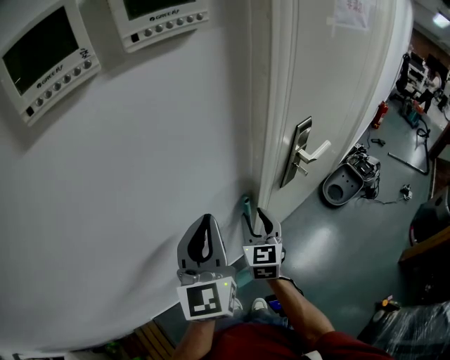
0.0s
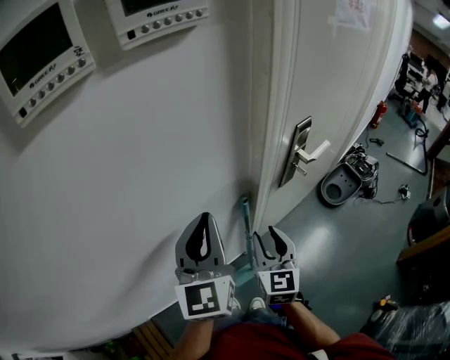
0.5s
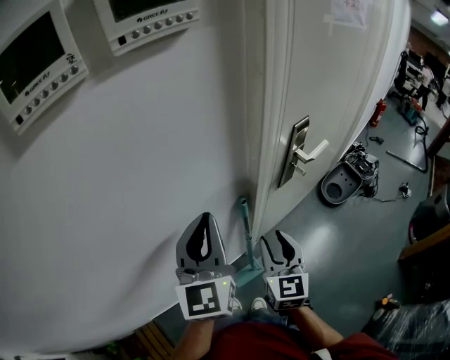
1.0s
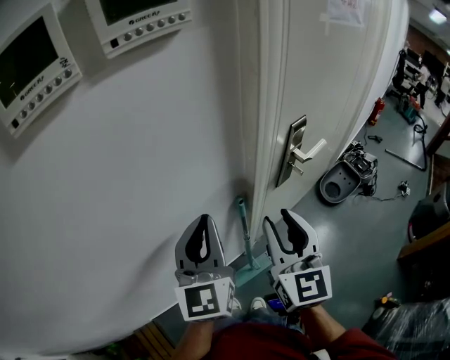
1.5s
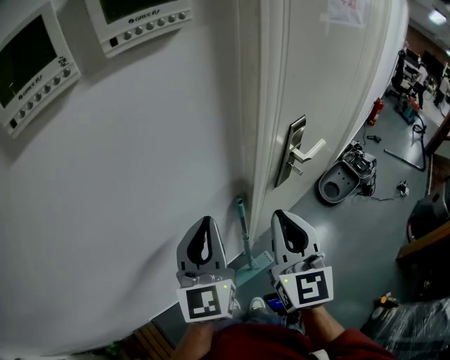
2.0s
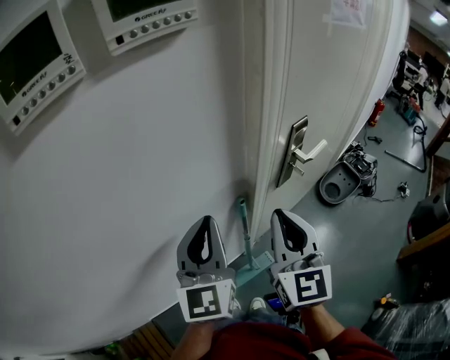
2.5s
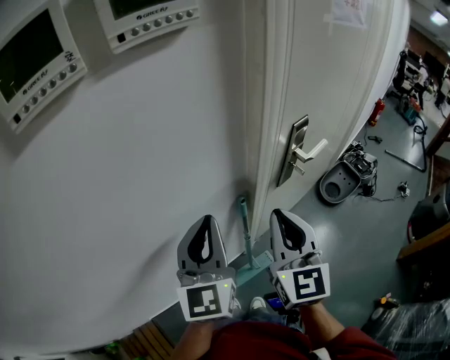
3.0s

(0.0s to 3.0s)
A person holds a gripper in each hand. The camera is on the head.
0.0s - 1.5s: The right gripper goes roughly 15 cm upward and backward.
1.5s - 3.0s: The right gripper closes.

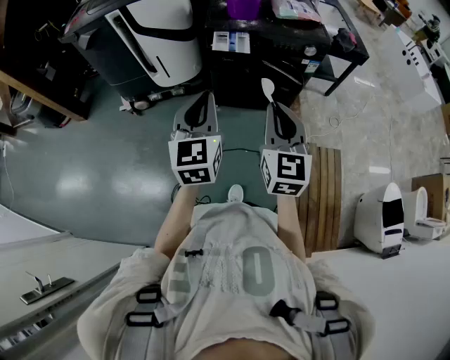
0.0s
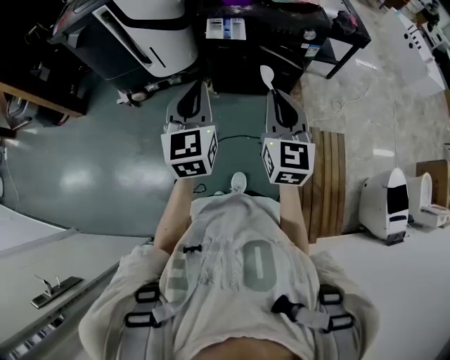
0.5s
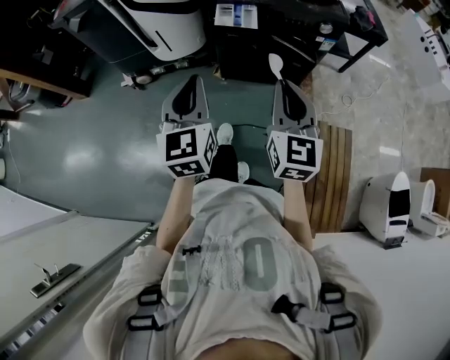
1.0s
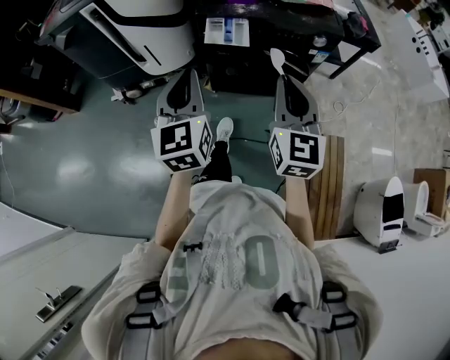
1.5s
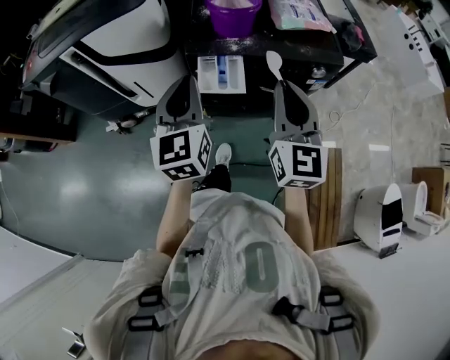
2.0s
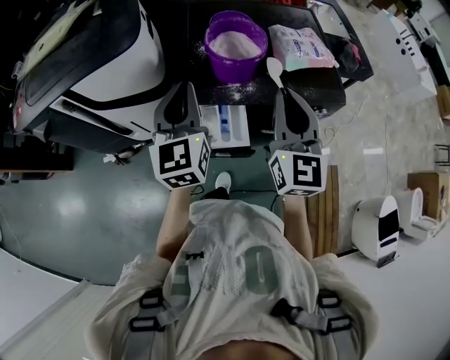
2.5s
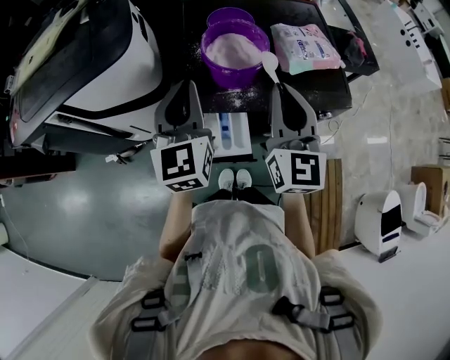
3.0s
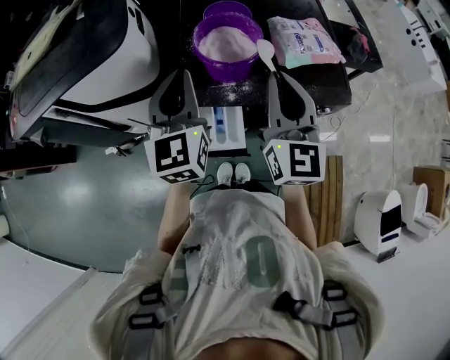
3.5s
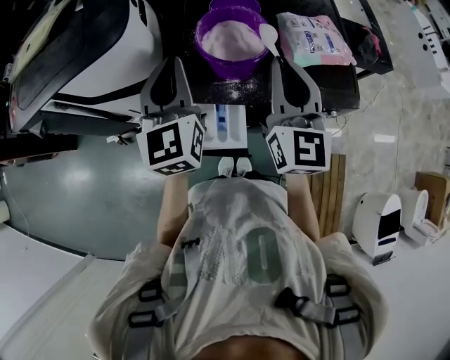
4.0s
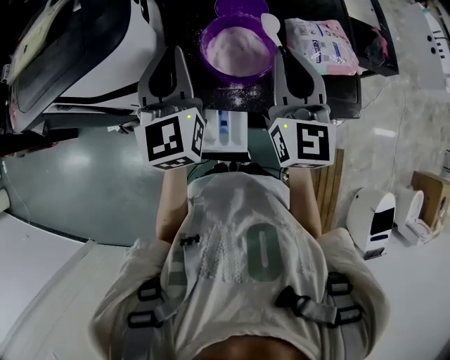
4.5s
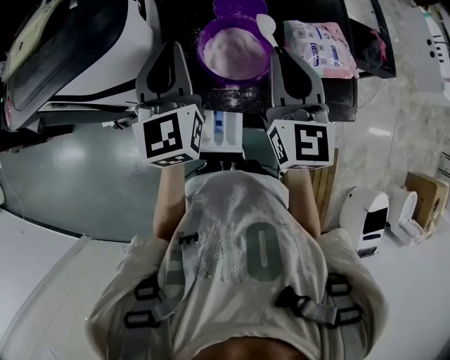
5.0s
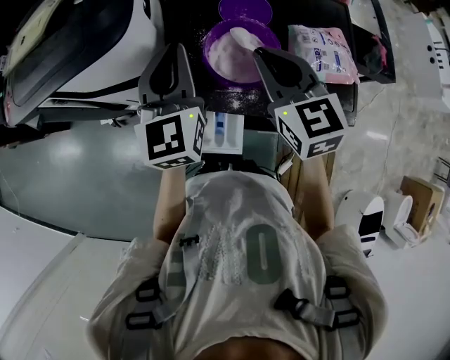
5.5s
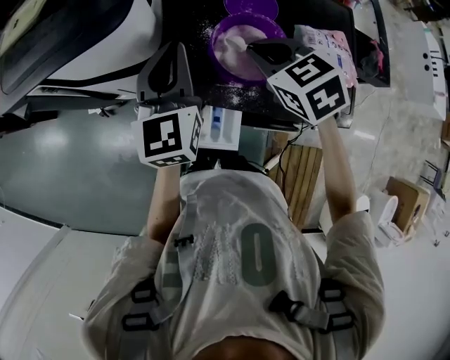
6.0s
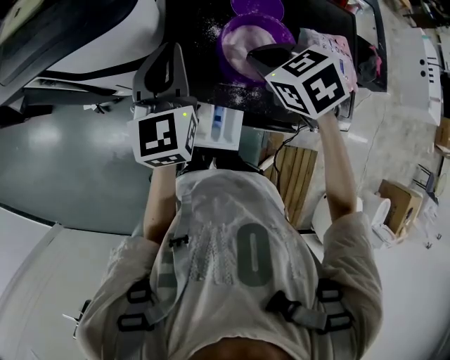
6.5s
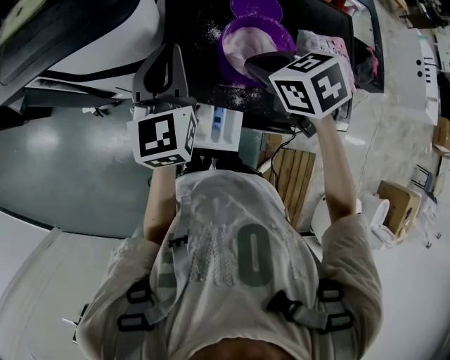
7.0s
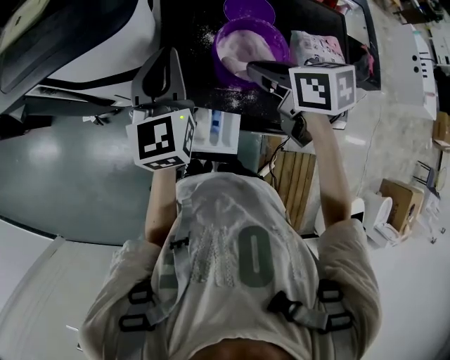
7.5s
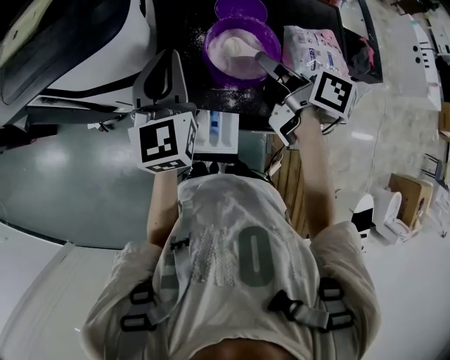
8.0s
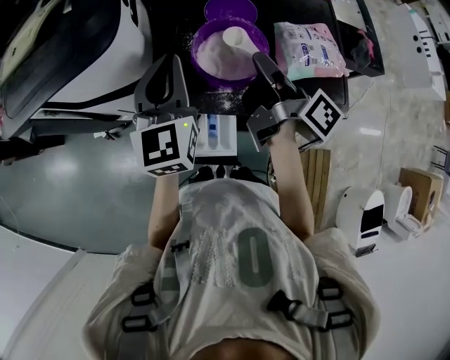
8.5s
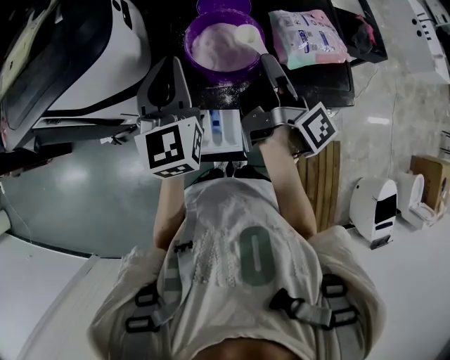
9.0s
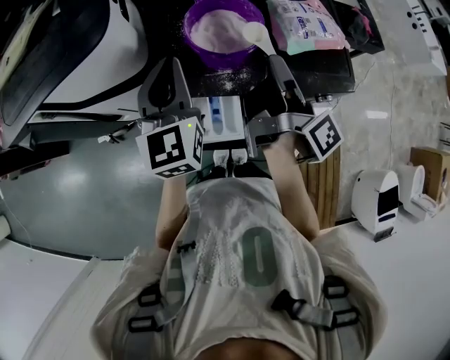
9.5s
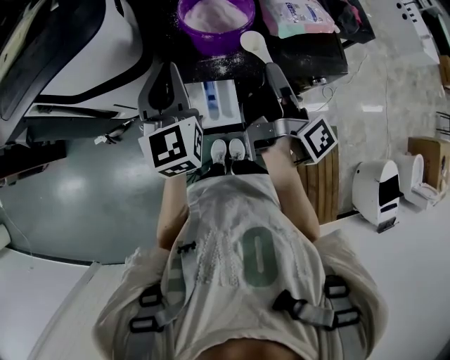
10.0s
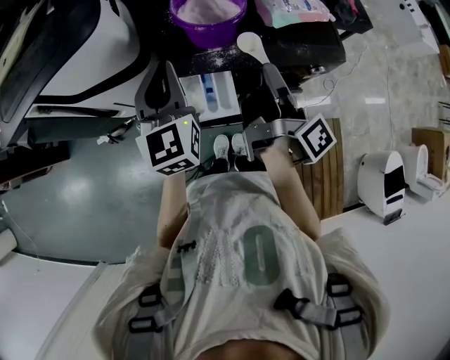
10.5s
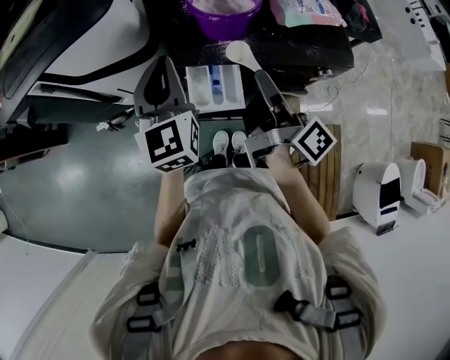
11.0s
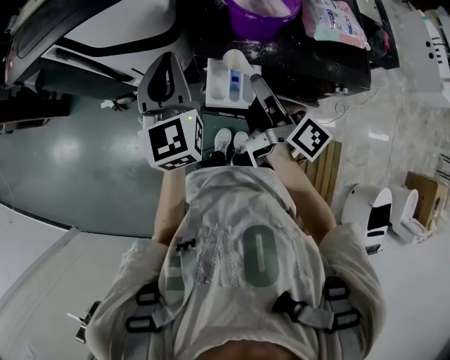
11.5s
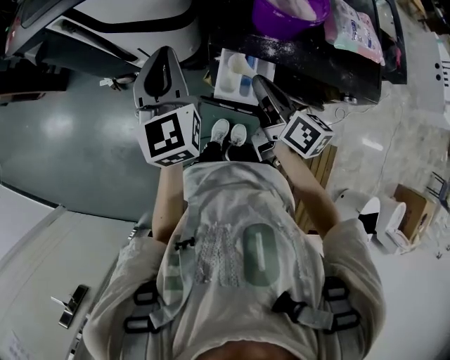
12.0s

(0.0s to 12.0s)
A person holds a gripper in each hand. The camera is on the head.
0.0s - 2.0s: Both grippers travel together forward, about 30 cm.
2.0s - 4.0s: The two grippers go some 25 cm forward.
4.0s - 6.0s: The left gripper moves forward, about 5 cm. Meanwhile the right gripper shifts roughly 15 cm forward, to the left and downward, and tips its fingers downward by about 50 degrees.
6.0s - 8.0s: The right gripper twists approximately 70 degrees clockwise, seen from behind.
8.0s - 10.0s: The left gripper shifts about 10 cm backward and downward; the right gripper moves backward, some 15 cm, and changes its angle by some 60 degrees.
10.0s - 12.0s: The right gripper changes place by about 15 cm, and turns by approximately 60 degrees. The left gripper moves approximately 15 cm.

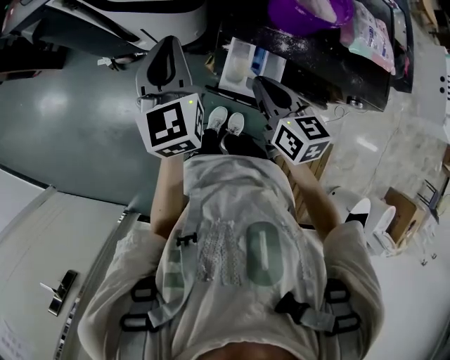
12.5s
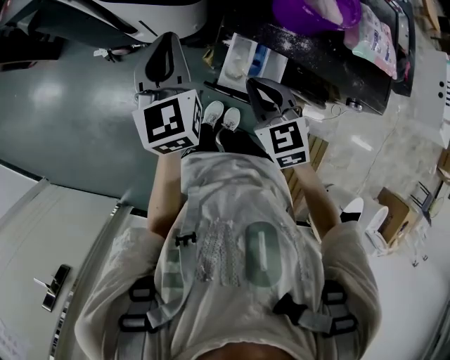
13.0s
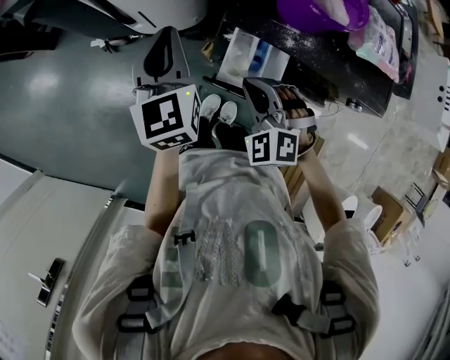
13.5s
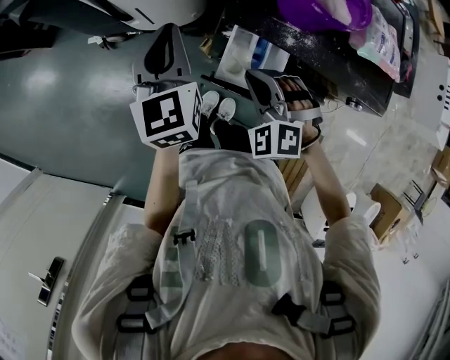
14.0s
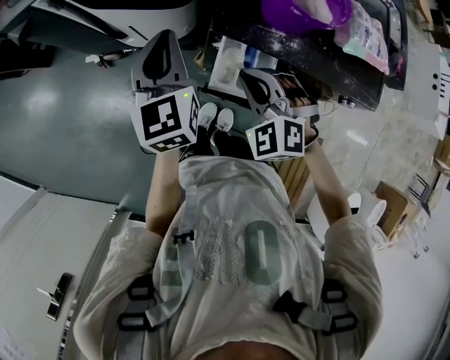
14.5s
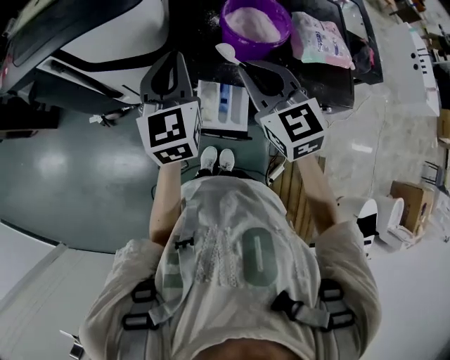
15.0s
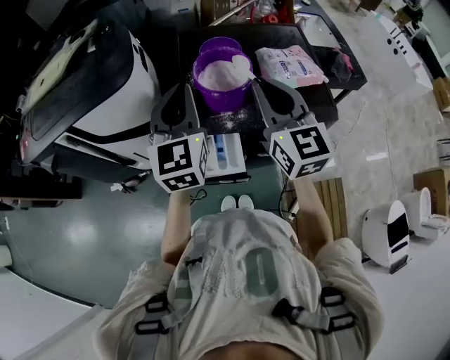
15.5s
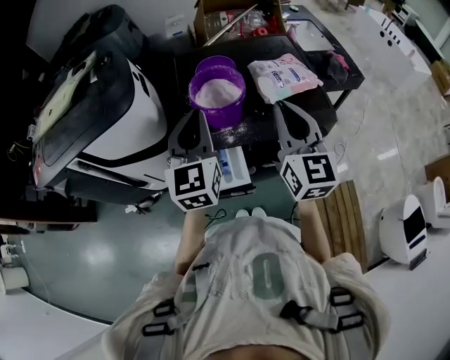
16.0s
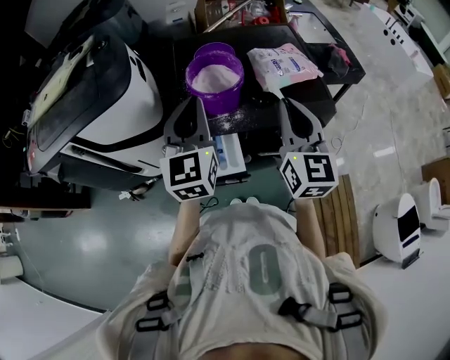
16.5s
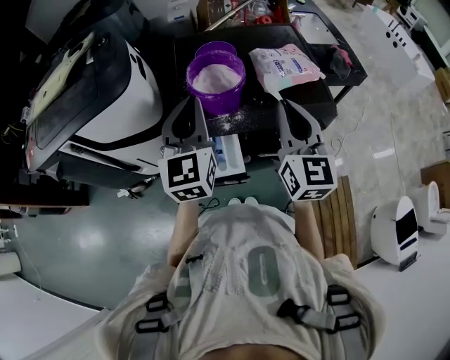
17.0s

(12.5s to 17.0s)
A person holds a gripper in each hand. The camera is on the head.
12.5s - 14.5s: The right gripper twists about 70 degrees counterclockwise, seen from behind.
14.5s - 17.0s: The left gripper moves roughly 25 cm, and turns by roughly 30 degrees. The right gripper shifts roughly 20 cm upward, and points its fingers roughly 40 degrees further upward.

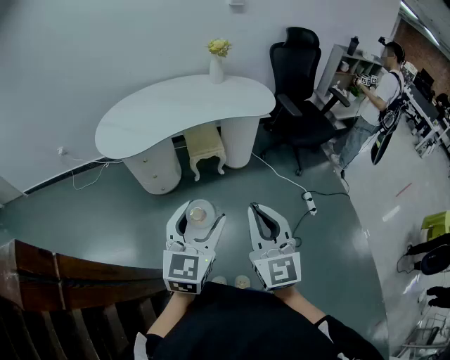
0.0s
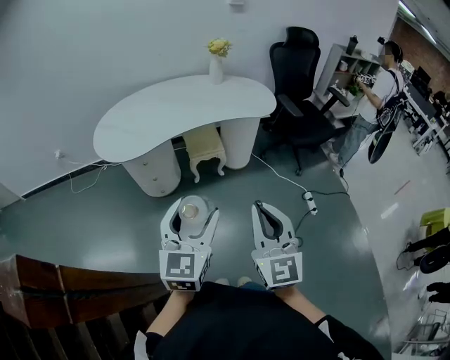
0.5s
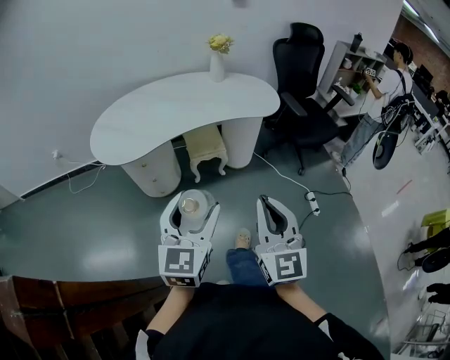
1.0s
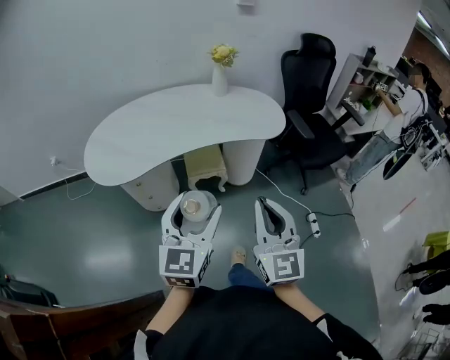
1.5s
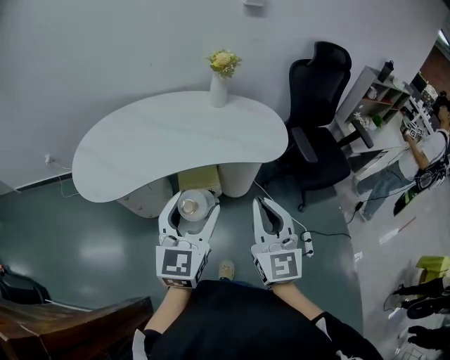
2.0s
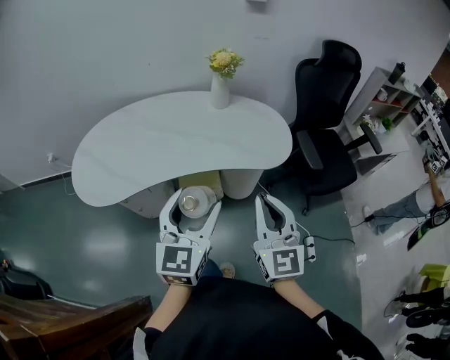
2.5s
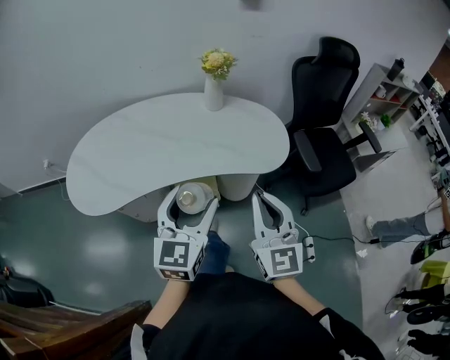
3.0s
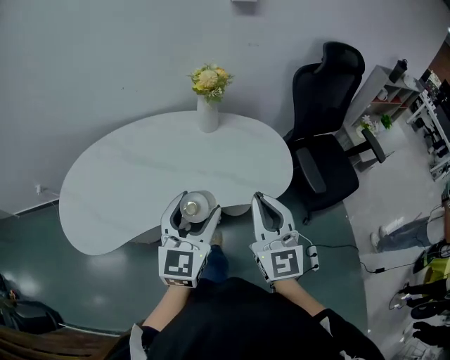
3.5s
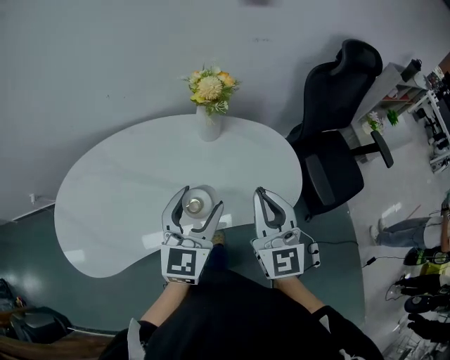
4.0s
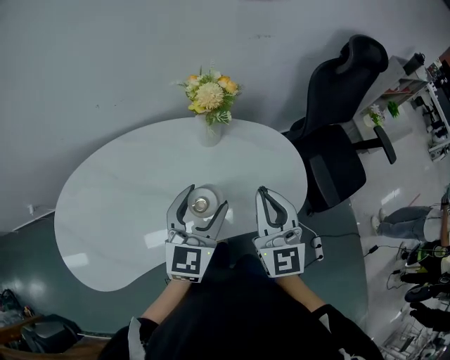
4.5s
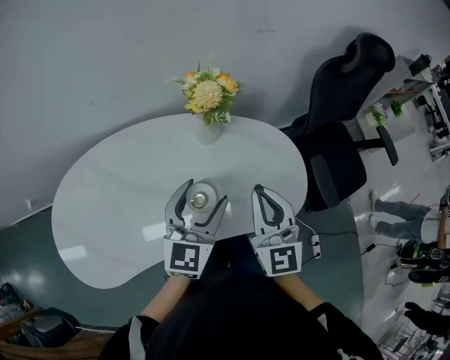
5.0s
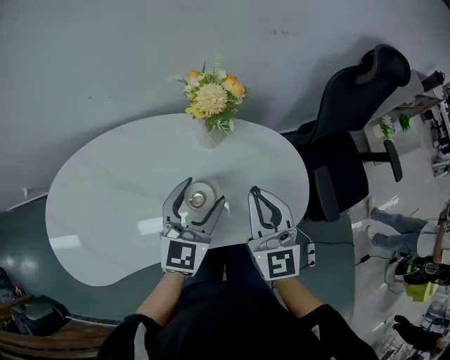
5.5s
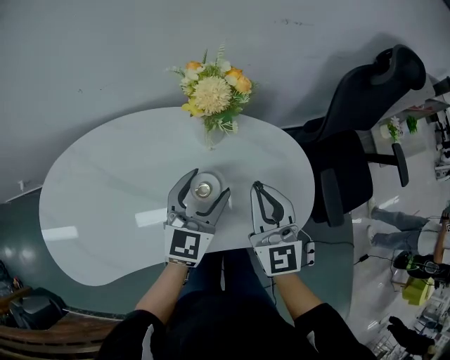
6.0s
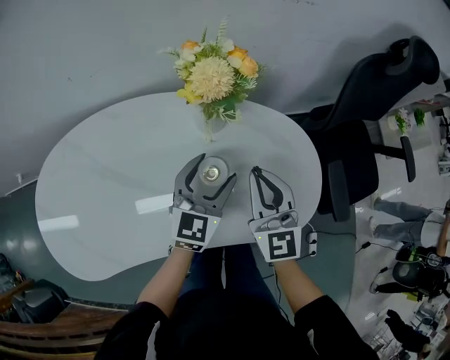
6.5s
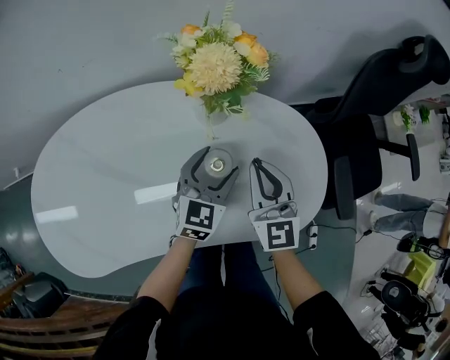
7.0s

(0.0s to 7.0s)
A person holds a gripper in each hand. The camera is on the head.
0.0s - 2.0s: Both grippers move forward, approximately 35 cm.
2.0s - 3.5s: Both grippers travel together forward, approximately 25 cm.
3.5s - 5.0s: Both grippers travel together forward, about 20 cm.
5.0s - 7.0s: Both grippers travel together downward and forward, some 20 cm.
